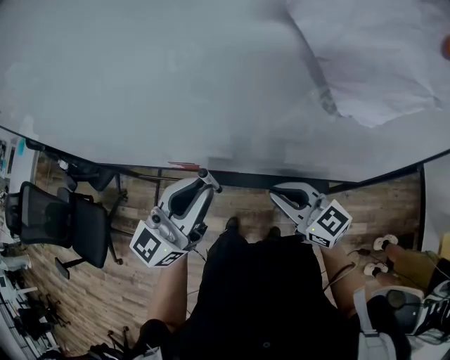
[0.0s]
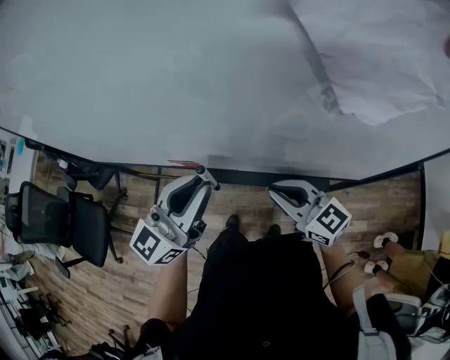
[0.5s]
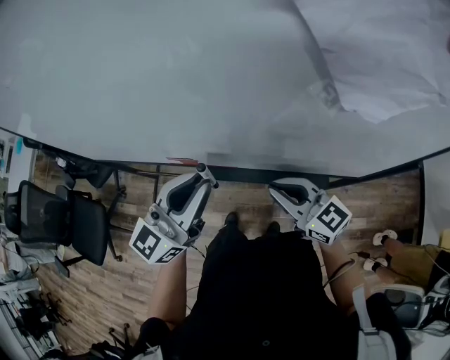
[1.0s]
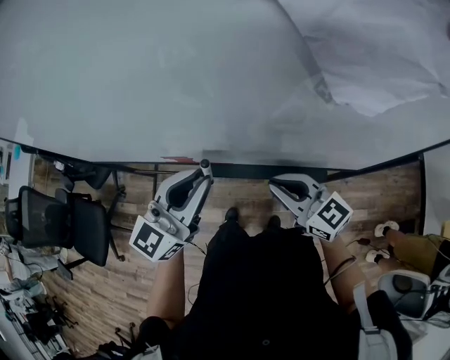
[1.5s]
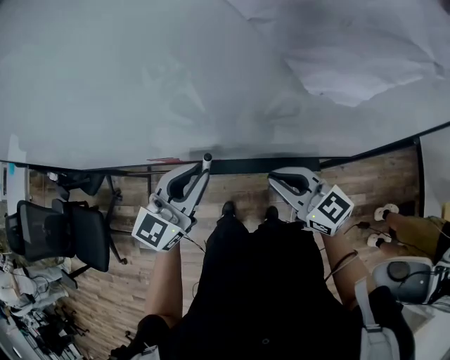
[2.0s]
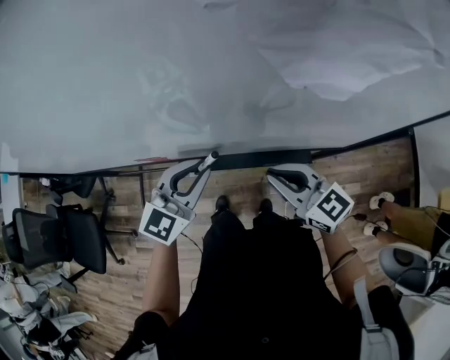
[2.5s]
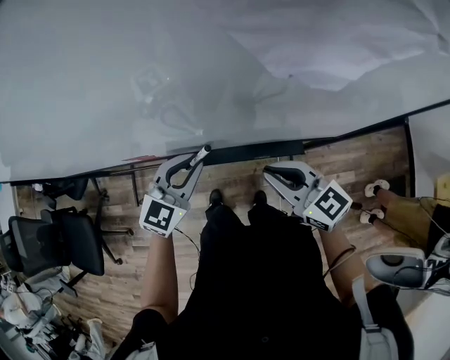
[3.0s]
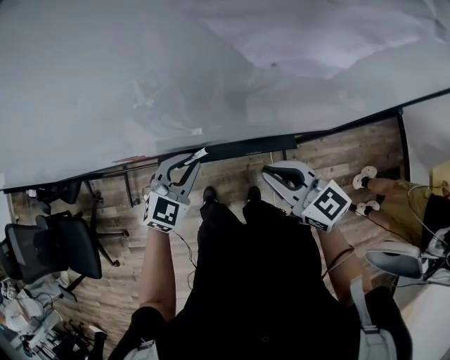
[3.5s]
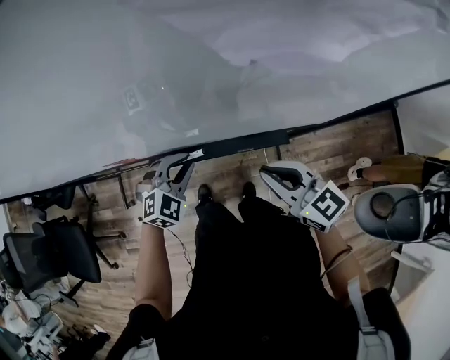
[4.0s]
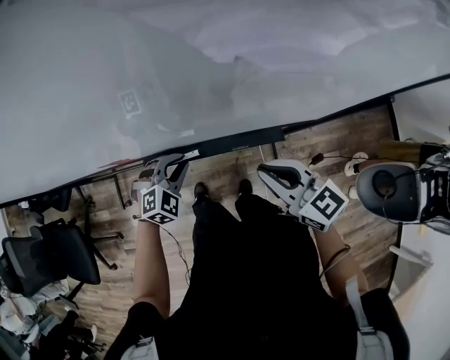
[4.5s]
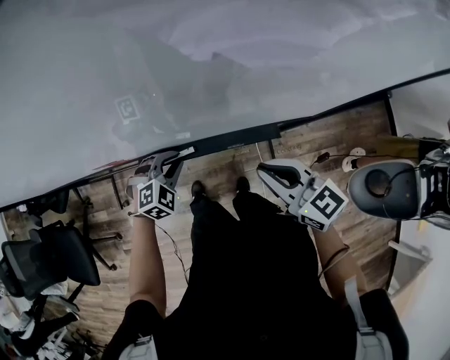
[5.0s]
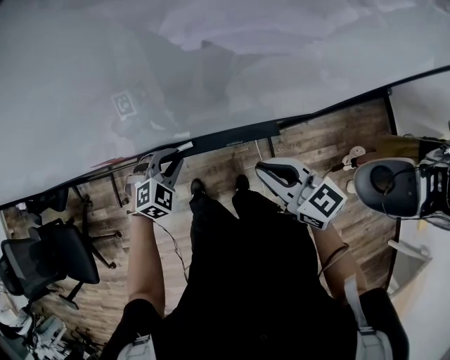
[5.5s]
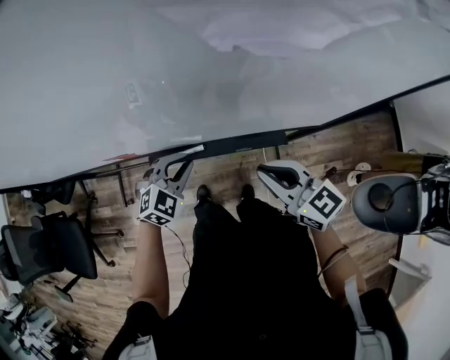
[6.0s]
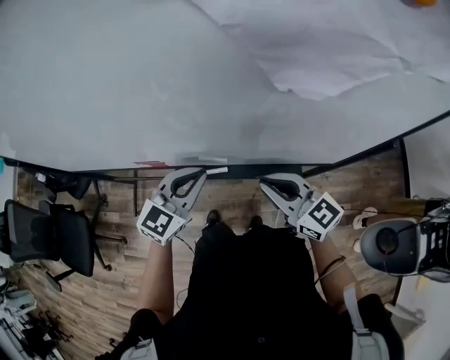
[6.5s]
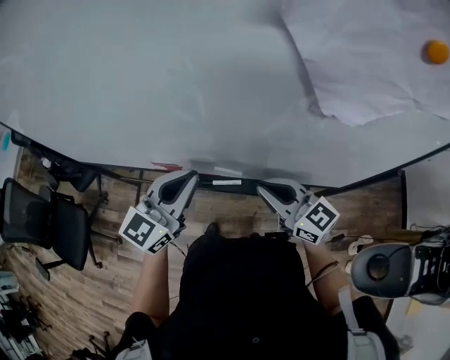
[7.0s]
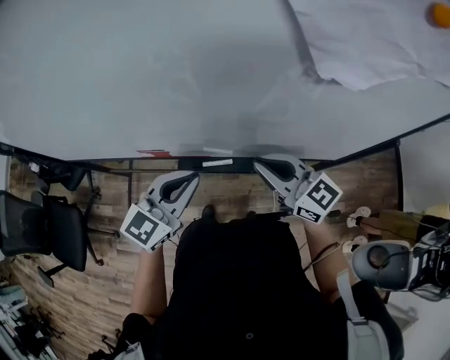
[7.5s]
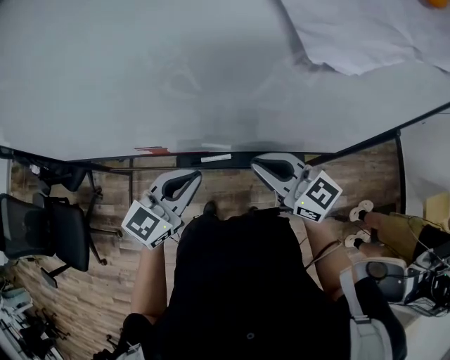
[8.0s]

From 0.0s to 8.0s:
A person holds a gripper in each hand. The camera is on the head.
From 0.0s to 2.0s: The left gripper travels downward by approximately 10 cm.
From 2.0s to 4.0s: The left gripper goes some 20 cm downward, and tilts its fingers approximately 30 degrees downward. Meanwhile the right gripper is displaced to the right by approximately 5 cm.
From 4.0s to 6.0s: The grippers stay close to where they were, moving slightly.
From 6.0s to 8.0s: The left gripper heads upward, covering roughly 15 cm, and turns by about 40 degrees. The right gripper moves to the left and upward, about 10 cm.

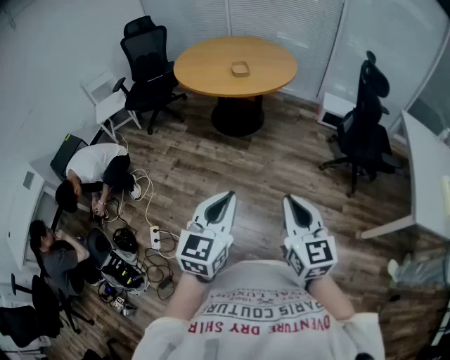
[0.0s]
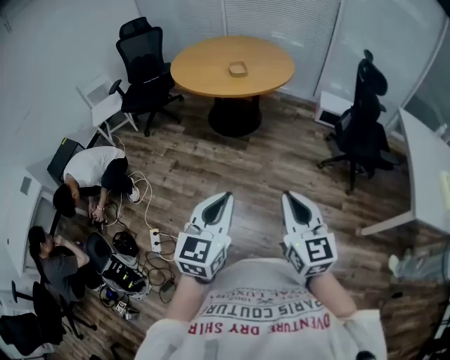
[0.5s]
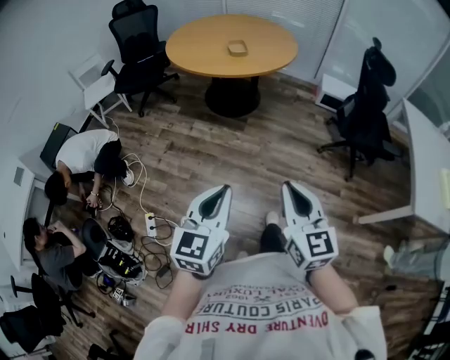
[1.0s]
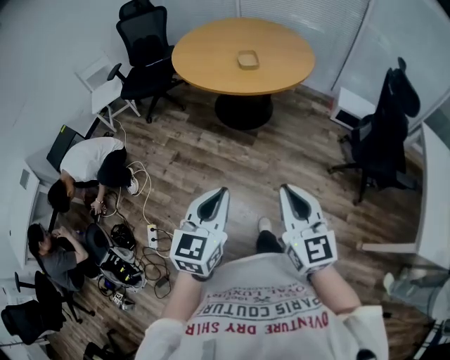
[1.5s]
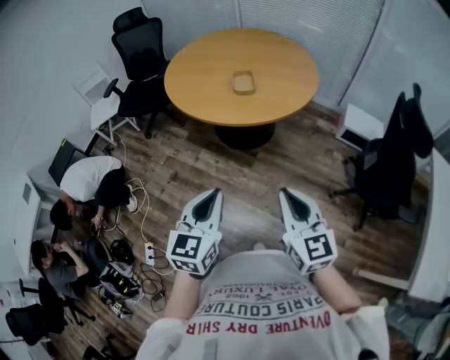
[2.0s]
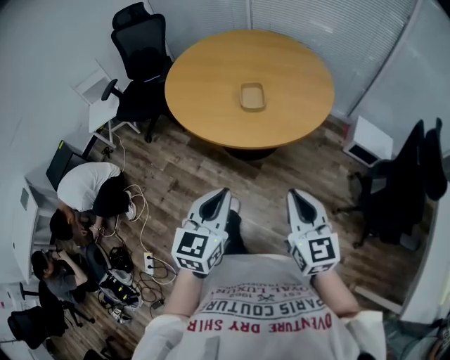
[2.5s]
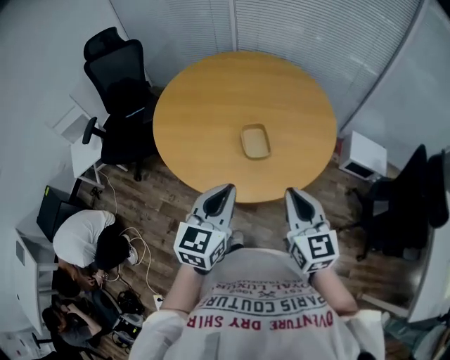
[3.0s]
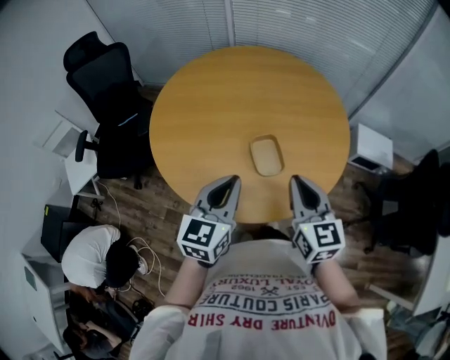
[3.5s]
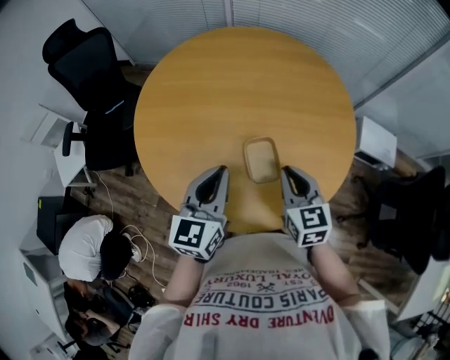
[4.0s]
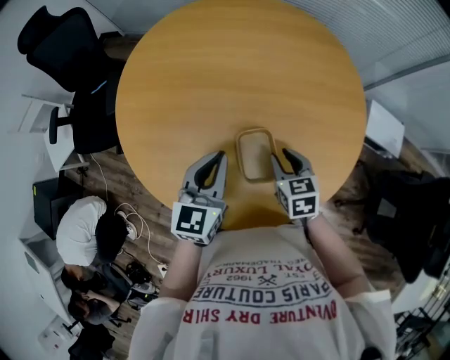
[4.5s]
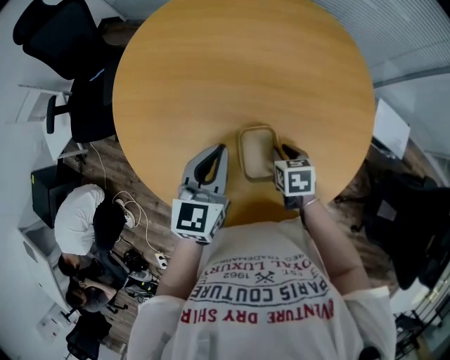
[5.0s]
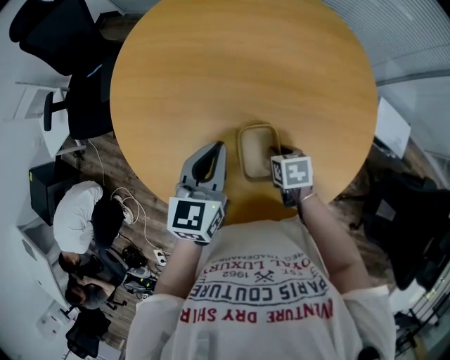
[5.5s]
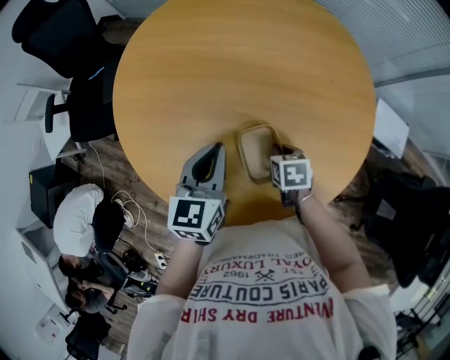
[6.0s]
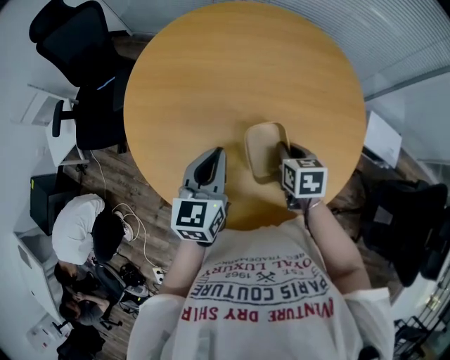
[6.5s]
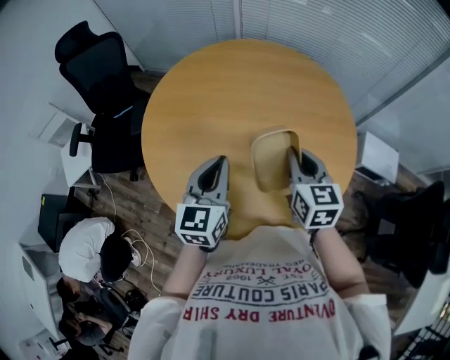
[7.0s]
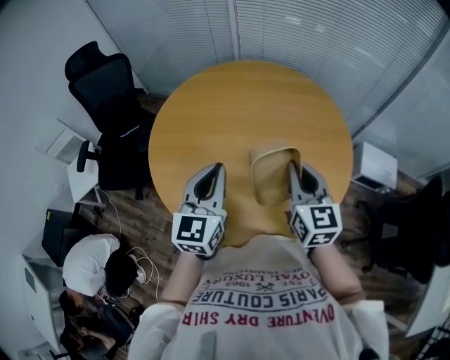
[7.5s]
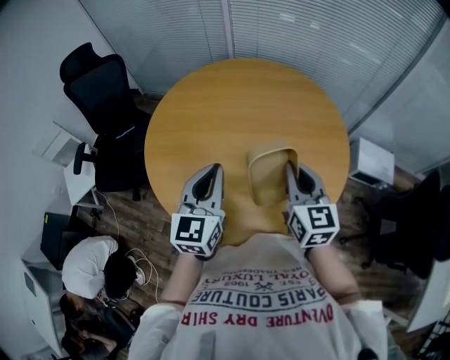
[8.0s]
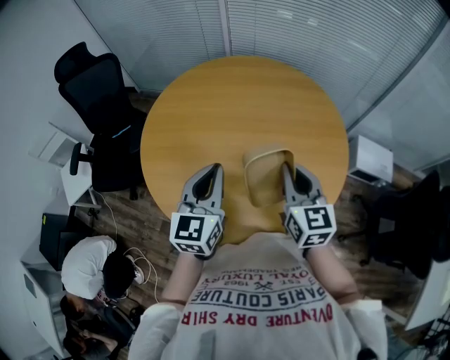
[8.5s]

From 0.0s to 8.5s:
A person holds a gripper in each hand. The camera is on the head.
From 0.0s to 2.0s: Both grippers move forward, roughly 35 cm.
From 2.0s to 4.0s: The pair of grippers is taken forward, approximately 60 cm. The right gripper turns by some 20 degrees.
From 4.0s to 6.5s: The left gripper goes approximately 10 cm downward and forward, while the right gripper heads downward and forward, covering approximately 15 cm, changes its angle by about 30 degrees, and opens, then closes once more.
From 6.5s to 8.5s: The right gripper is displaced upward by roughly 20 cm, and angles its fingers upward, by roughly 40 degrees; the left gripper heads upward, covering roughly 10 cm.

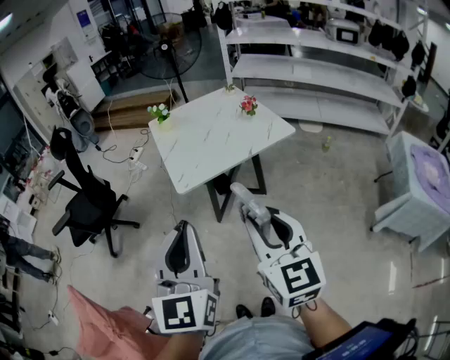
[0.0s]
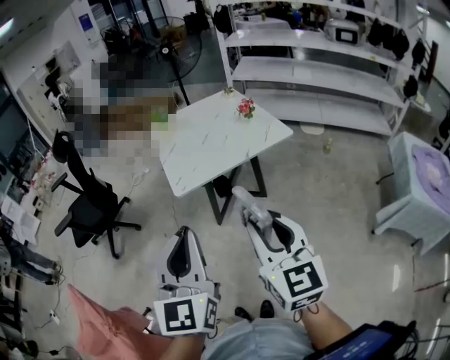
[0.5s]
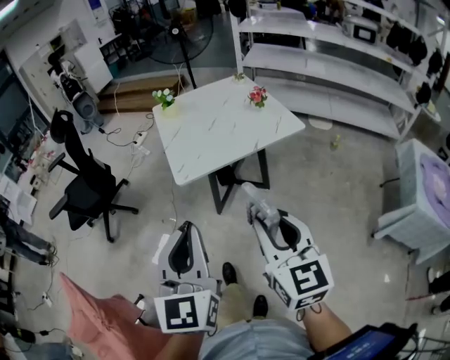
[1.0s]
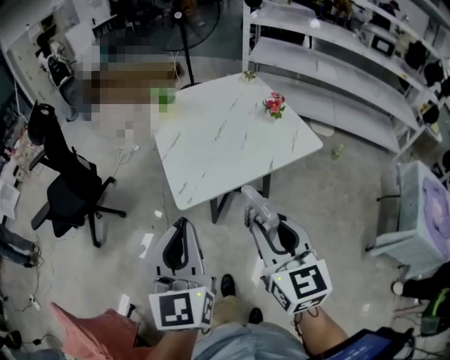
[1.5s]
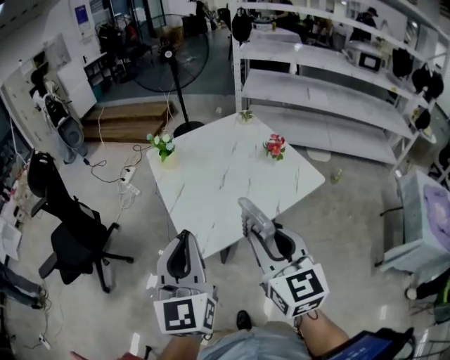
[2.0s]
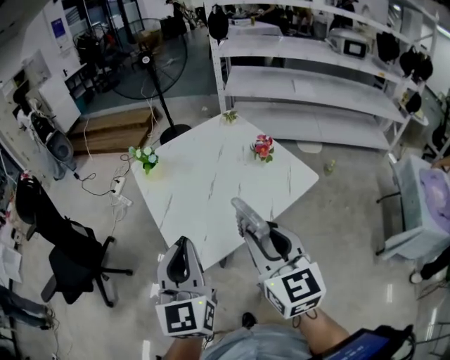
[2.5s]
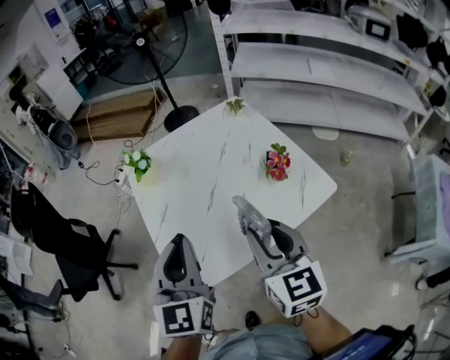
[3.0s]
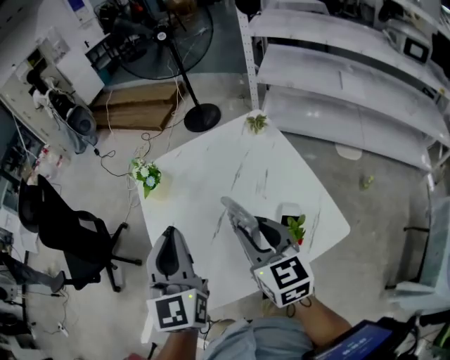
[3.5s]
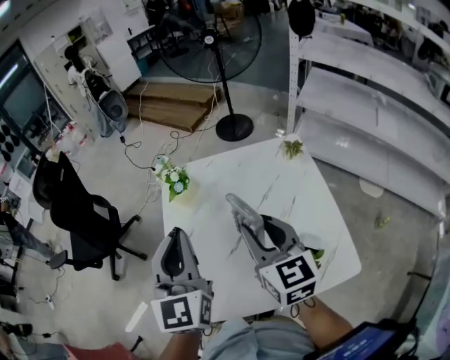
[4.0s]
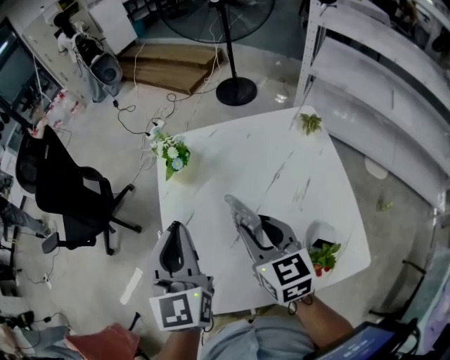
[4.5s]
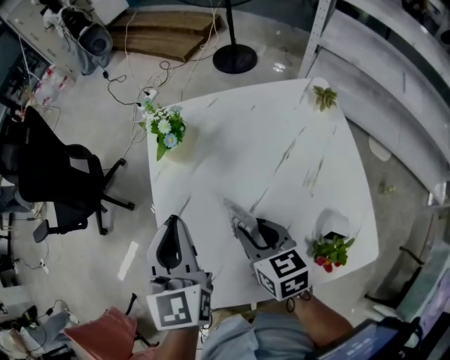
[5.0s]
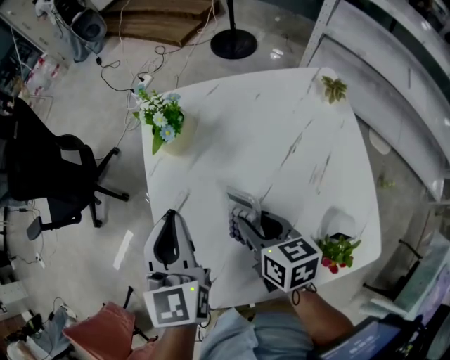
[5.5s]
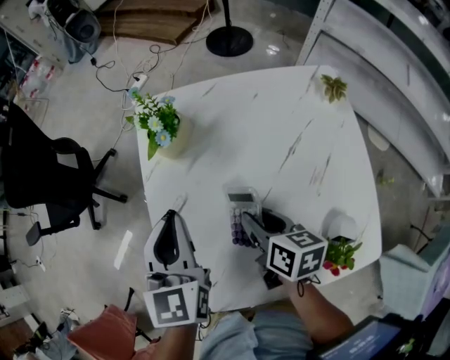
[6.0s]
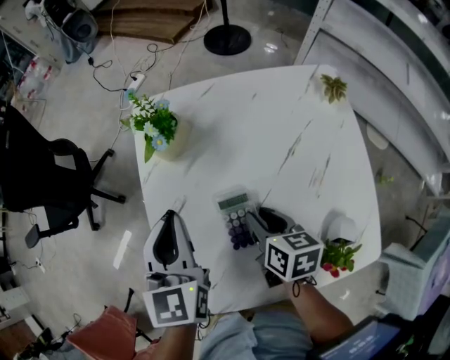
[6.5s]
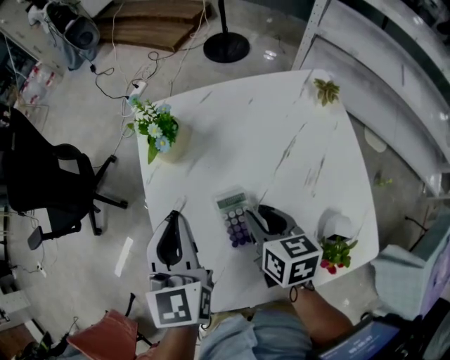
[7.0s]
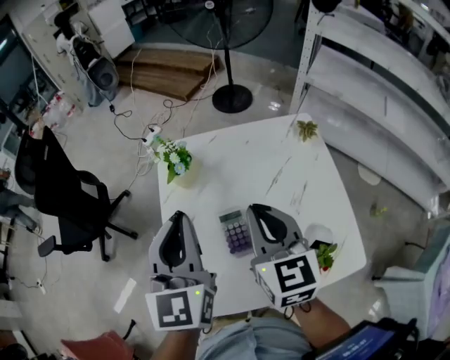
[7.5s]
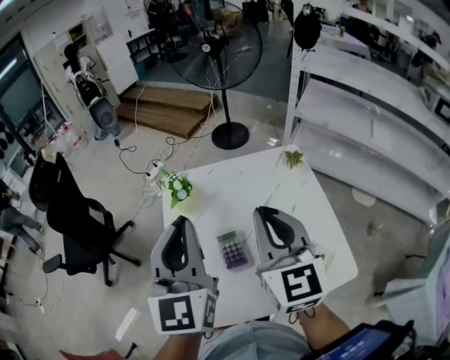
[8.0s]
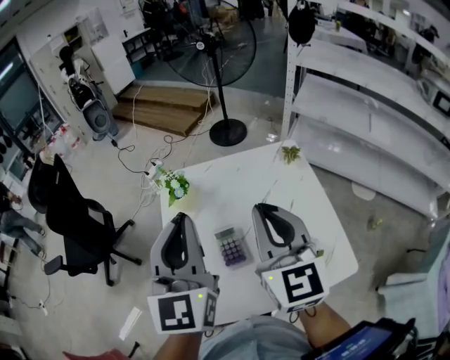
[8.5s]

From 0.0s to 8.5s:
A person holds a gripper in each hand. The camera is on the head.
From 0.0s to 2.0s: The two grippers go about 30 cm forward.
From 2.0s to 4.0s: The right gripper moves some 35 cm, and changes its angle by some 20 degrees. Meanwhile the left gripper shifts by some 30 cm, and rotates roughly 20 degrees.
From 4.0s to 6.5s: The right gripper heads downward, covering about 25 cm, and tilts its fingers roughly 30 degrees downward; the left gripper travels downward and forward by roughly 20 cm, and changes its angle by approximately 20 degrees.
From 6.5s to 8.5s: The two grippers go roughly 30 cm upward. The left gripper rotates about 30 degrees. Meanwhile the right gripper points its fingers some 40 degrees further upward, and closes.

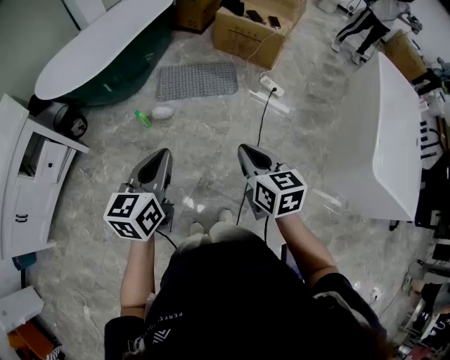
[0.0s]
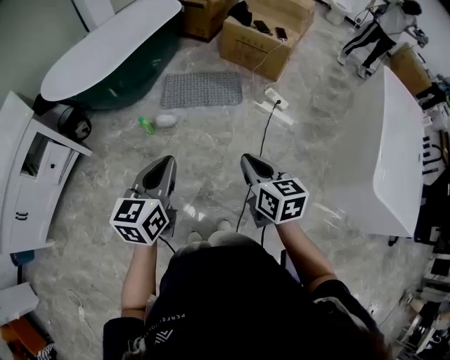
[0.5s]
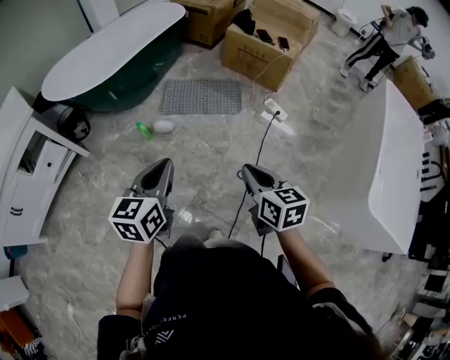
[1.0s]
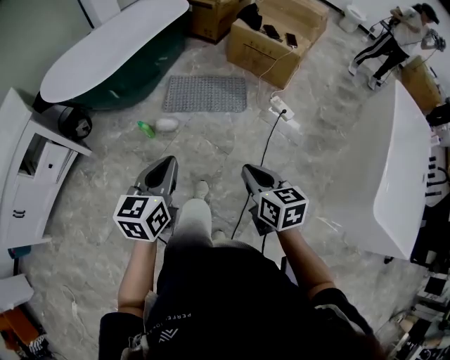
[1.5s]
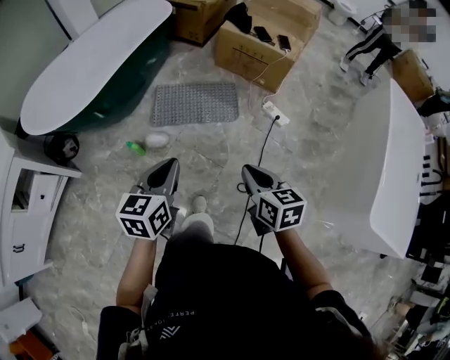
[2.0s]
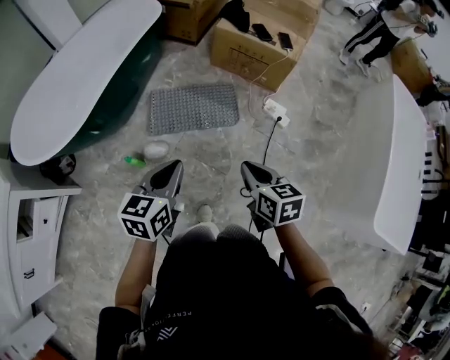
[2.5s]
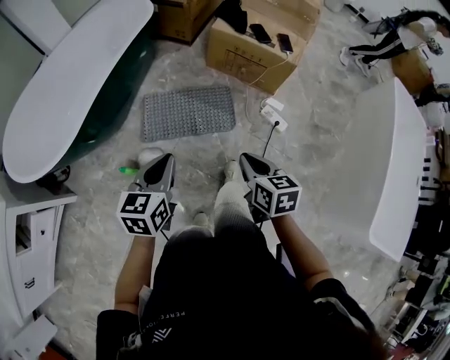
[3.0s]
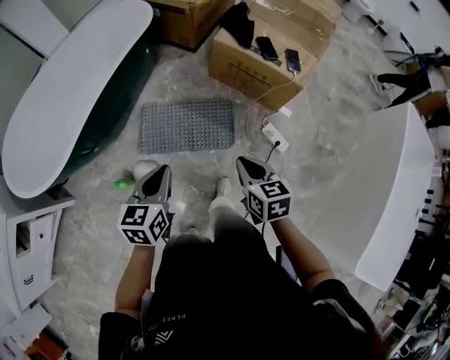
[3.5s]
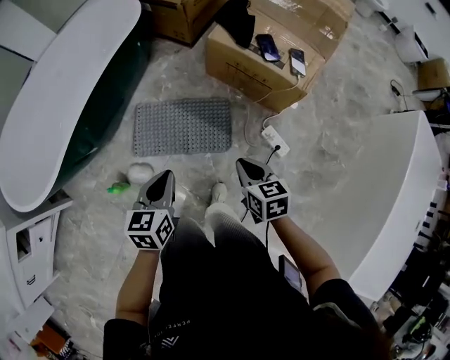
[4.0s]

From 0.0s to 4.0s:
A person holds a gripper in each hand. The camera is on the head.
From 0.0s to 2.0s: The two grippers go approximately 20 cm forward.
From 2.0s to 4.0s: The two grippers go some 40 cm forward.
